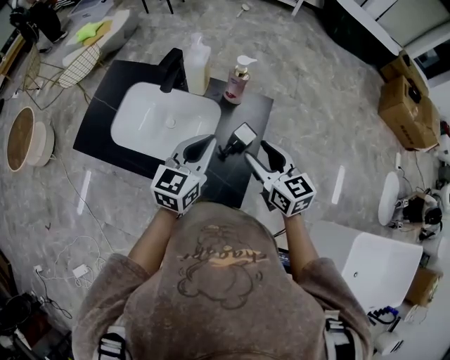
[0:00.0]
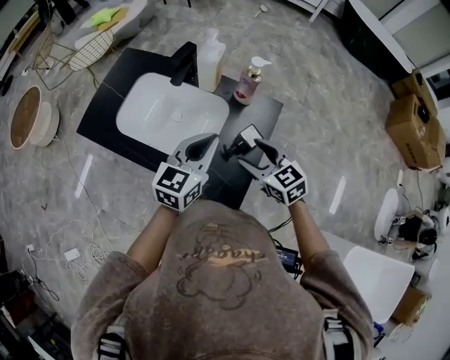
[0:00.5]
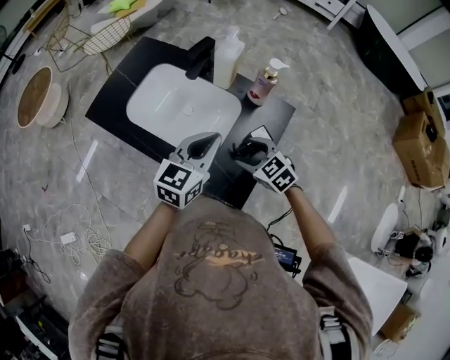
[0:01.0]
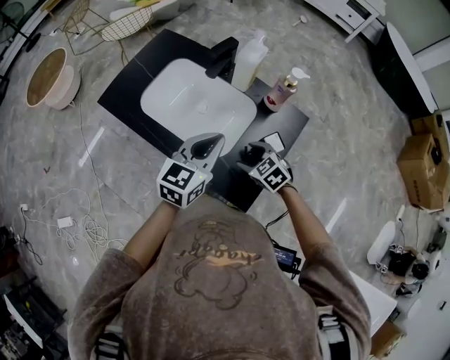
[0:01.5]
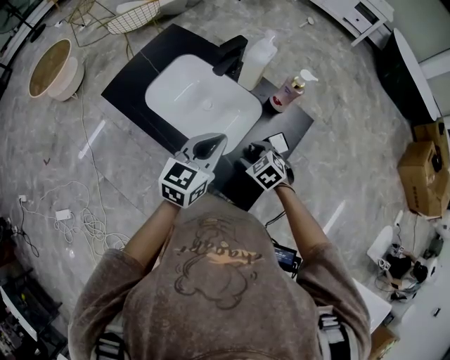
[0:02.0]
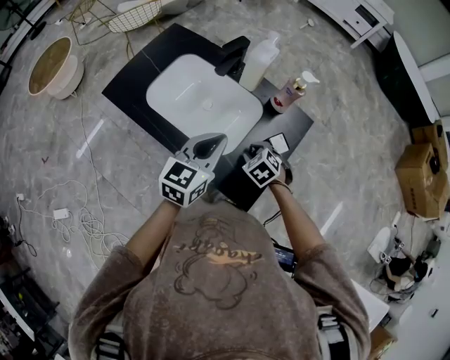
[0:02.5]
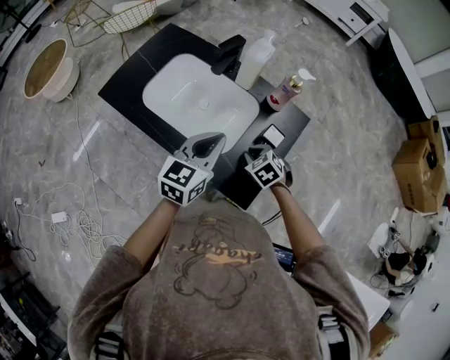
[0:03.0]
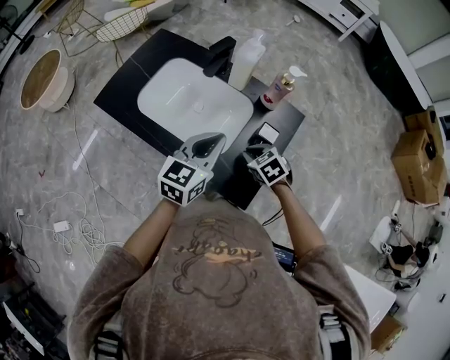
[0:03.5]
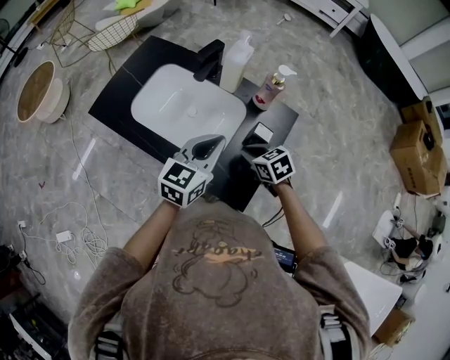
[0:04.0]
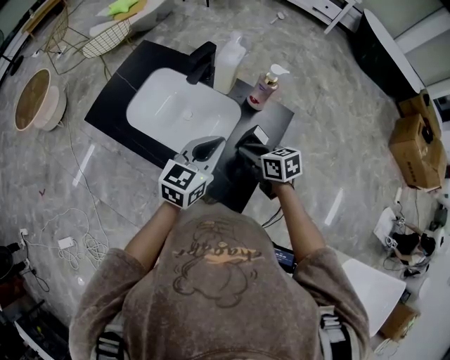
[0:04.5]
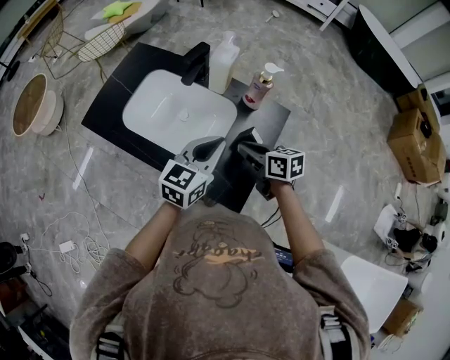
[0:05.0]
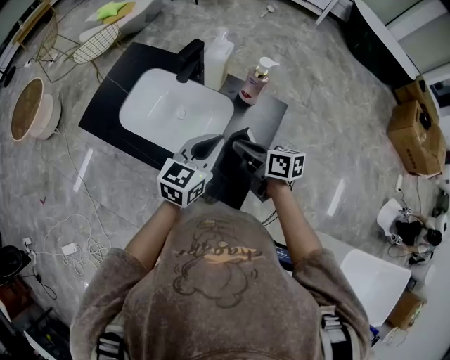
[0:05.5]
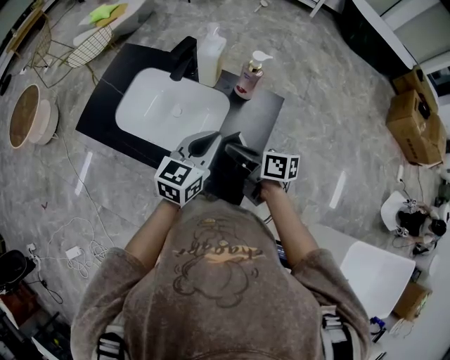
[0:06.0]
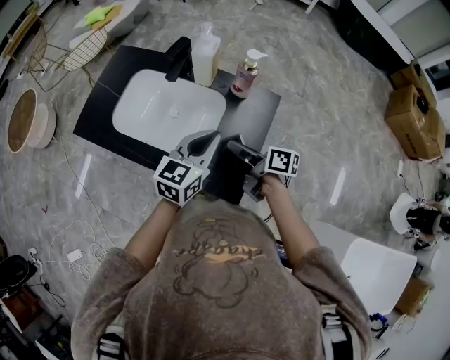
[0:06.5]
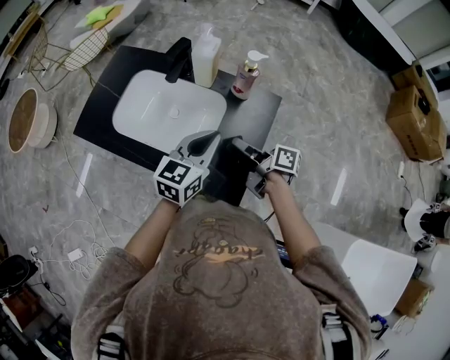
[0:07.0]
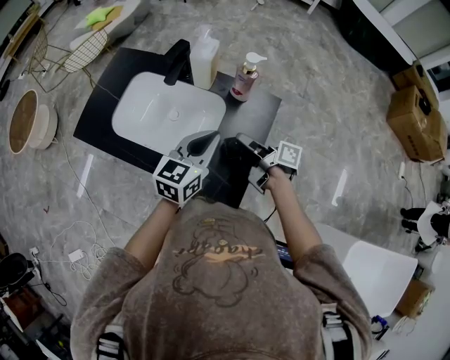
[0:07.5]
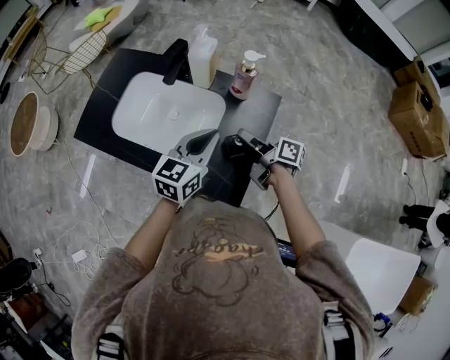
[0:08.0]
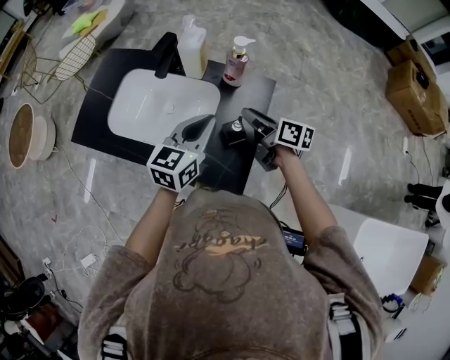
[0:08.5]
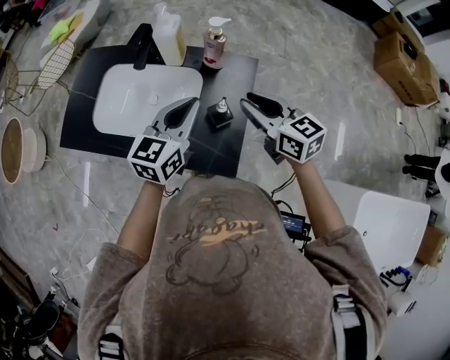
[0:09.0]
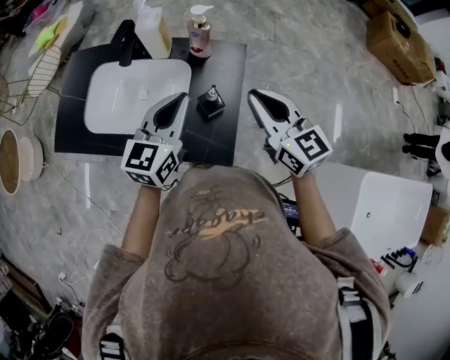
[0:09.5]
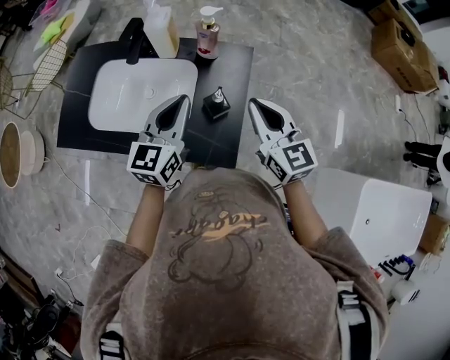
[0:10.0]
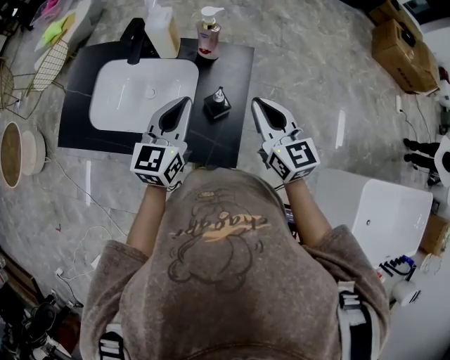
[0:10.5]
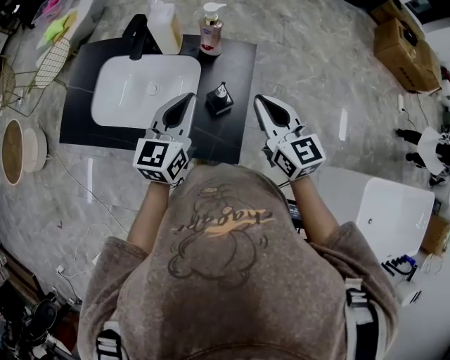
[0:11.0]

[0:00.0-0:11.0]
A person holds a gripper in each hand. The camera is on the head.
0:00.0 to 0:02.0: The left gripper is displaced to the left by approximately 5 cm, while the right gripper shifts about 20 cm downward and to the left, and tilts its fingers approximately 40 degrees downward.
0:02.0 to 0:03.5: The right gripper closes.
0:03.5 to 0:05.5: The left gripper shifts approximately 5 cm to the right. The right gripper travels upward by approximately 10 cm, and points its fingers about 40 degrees further upward.
0:05.5 to 0:07.5: The right gripper shifts by some 5 cm, and swivels approximately 40 degrees.
0:07.5 to 0:09.0: The right gripper travels upward by about 10 cm, and rolls counterclockwise, seen from behind, by roughly 60 degrees.
0:09.0 to 0:11.0: The right gripper ends up approximately 5 cm from where it was.

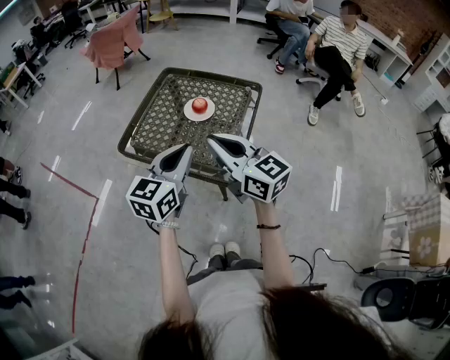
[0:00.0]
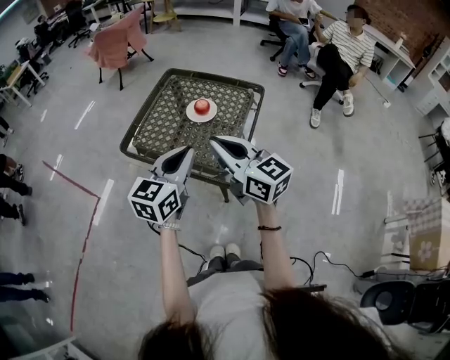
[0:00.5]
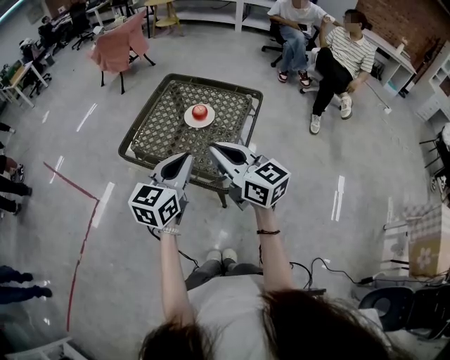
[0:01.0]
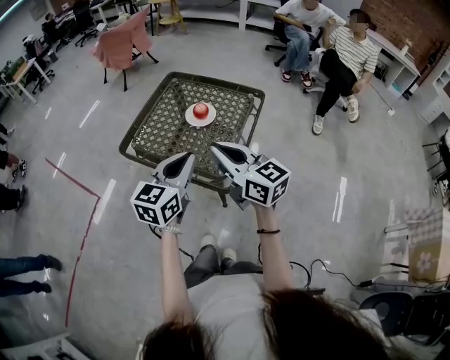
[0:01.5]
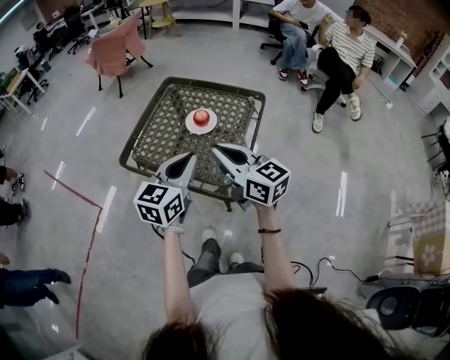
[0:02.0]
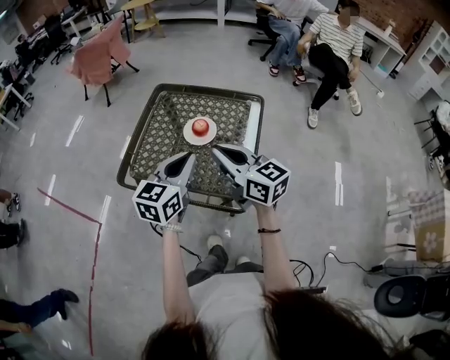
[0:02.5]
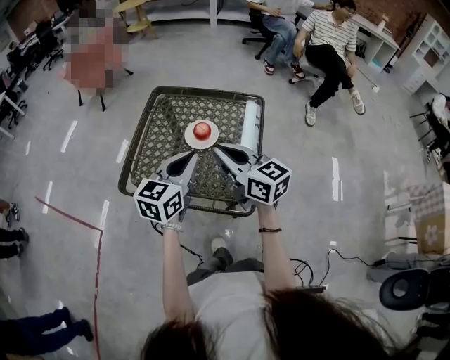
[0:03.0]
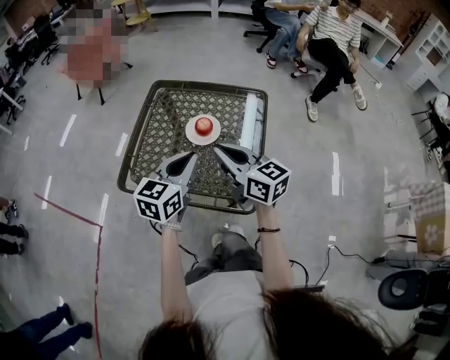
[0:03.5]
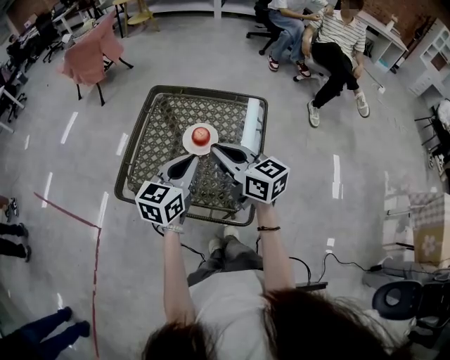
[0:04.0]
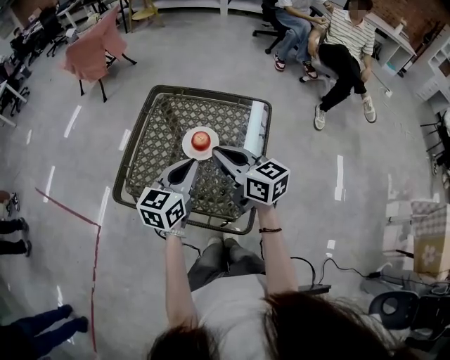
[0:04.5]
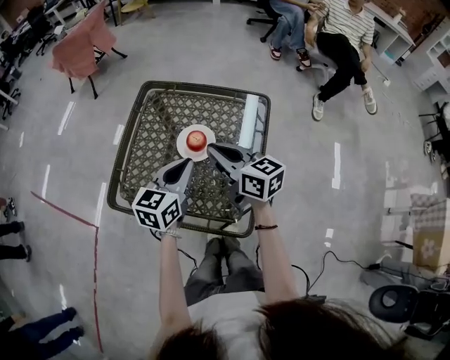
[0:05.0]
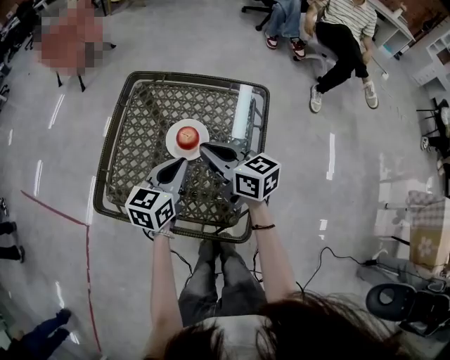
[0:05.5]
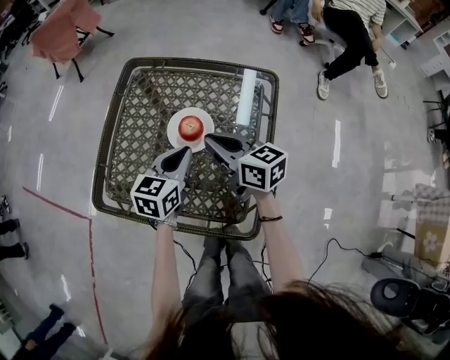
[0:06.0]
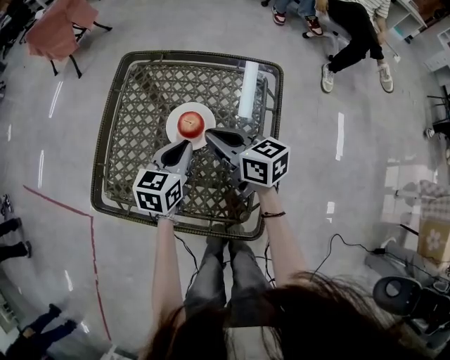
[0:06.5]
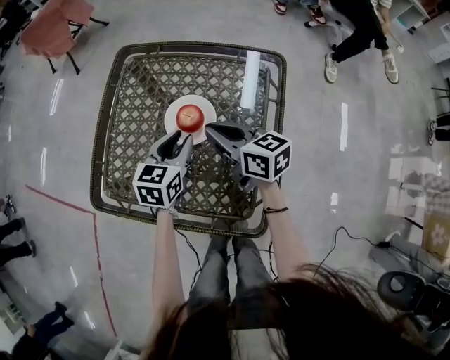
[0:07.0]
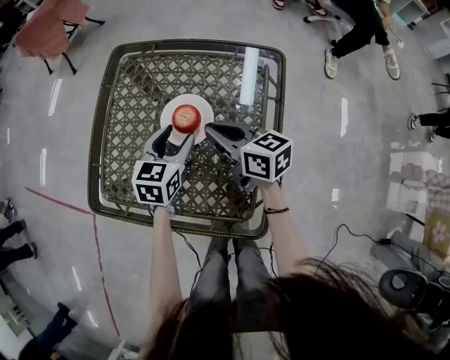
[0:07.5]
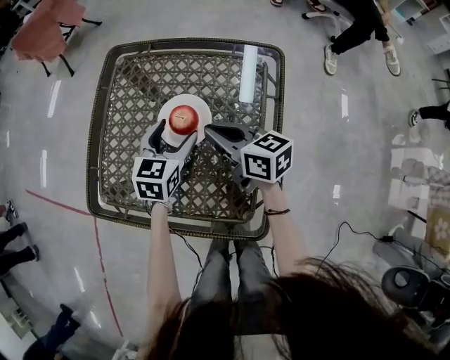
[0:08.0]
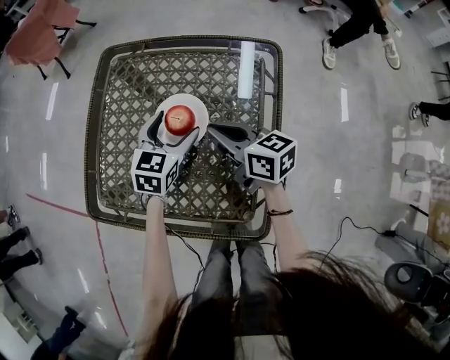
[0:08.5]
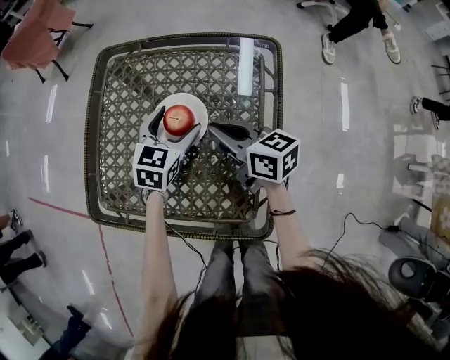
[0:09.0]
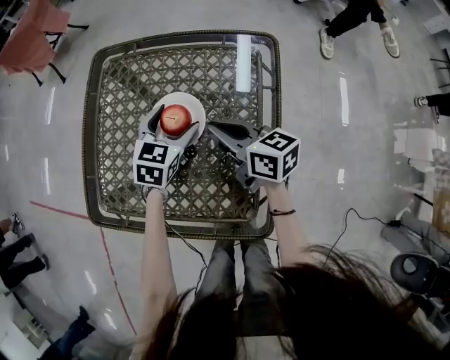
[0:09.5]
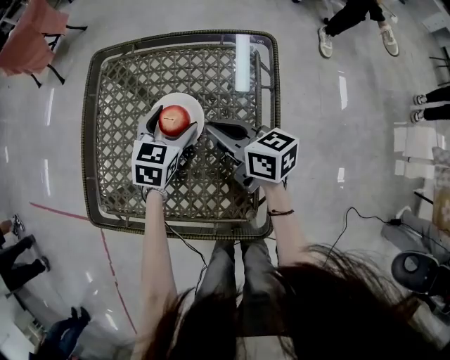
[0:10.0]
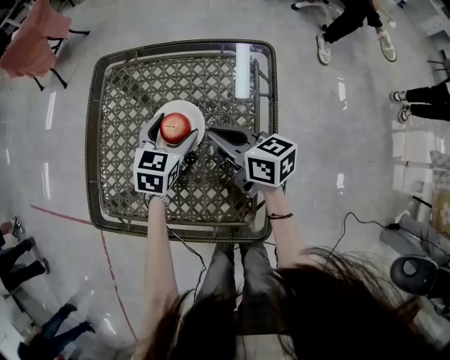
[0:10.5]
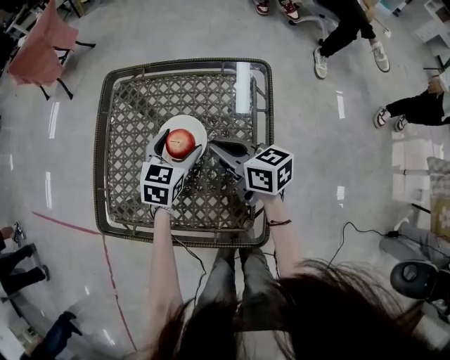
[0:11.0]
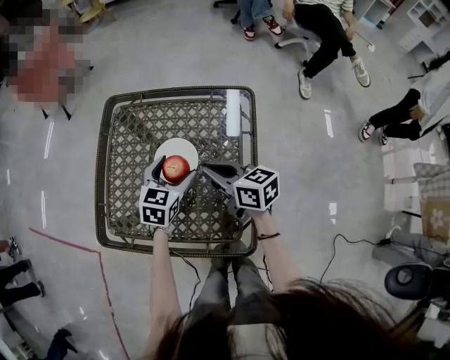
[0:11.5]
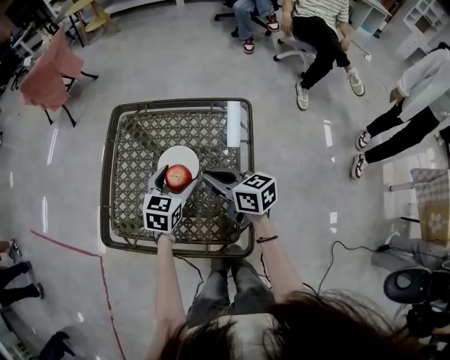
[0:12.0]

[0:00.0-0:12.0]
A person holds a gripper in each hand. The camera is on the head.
0:00.0 to 0:02.0: The right gripper changes place by about 5 cm; the left gripper ends up about 5 cm from where it was.
0:02.0 to 0:04.0: The grippers both shift forward by about 15 cm.
0:04.0 to 0:06.0: Both grippers move downward and forward, roughly 20 cm.
0:06.0 to 0:08.0: The right gripper goes some 5 cm downward, while the left gripper goes about 10 cm downward and forward, and opens.
0:08.0 to 0:10.0: The grippers move only a little.
0:10.0 to 0:12.0: The left gripper travels upward and backward by some 10 cm; the right gripper goes approximately 10 cm upward.

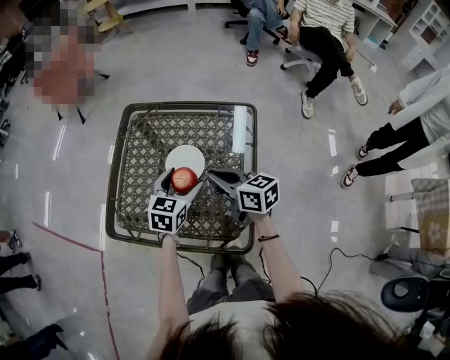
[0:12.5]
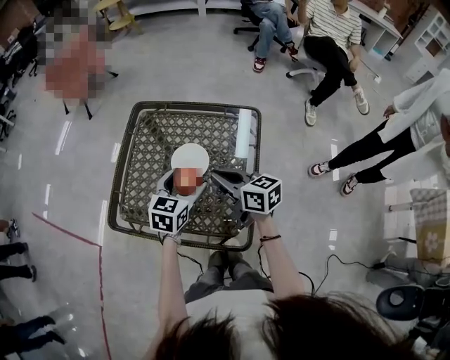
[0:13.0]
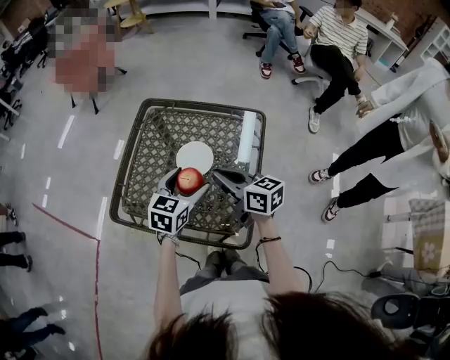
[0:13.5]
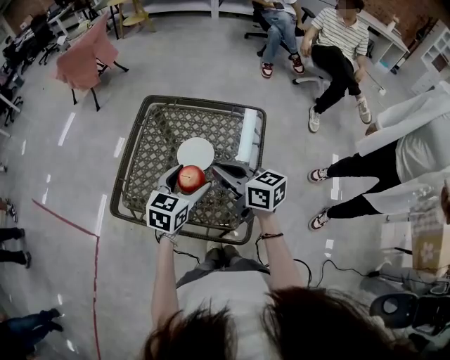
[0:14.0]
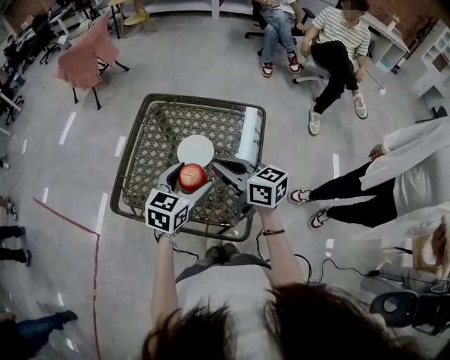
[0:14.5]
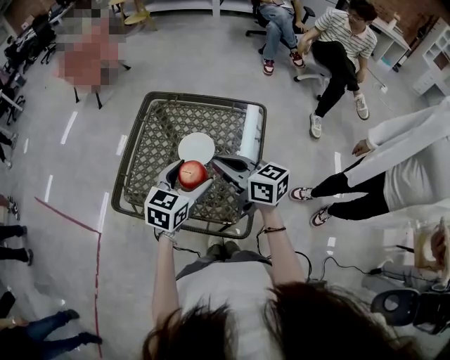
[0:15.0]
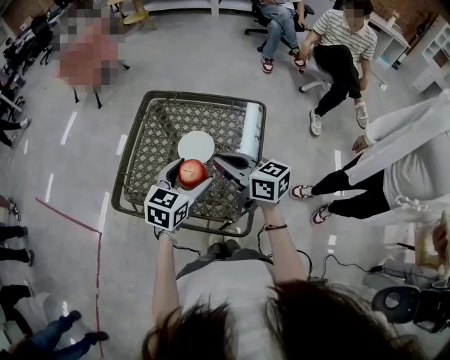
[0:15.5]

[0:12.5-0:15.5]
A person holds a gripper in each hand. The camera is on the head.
0:12.5 to 0:14.0: The right gripper goes some 5 cm upward; the left gripper goes about 10 cm upward and backward.
0:14.0 to 0:15.5: There are only small adjustments of the grippers.

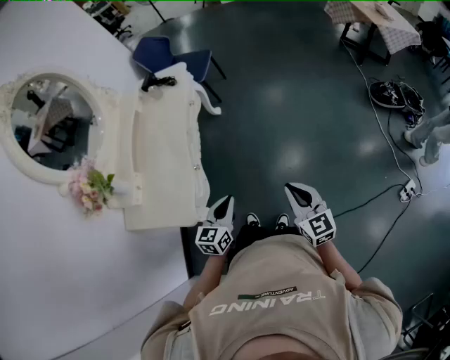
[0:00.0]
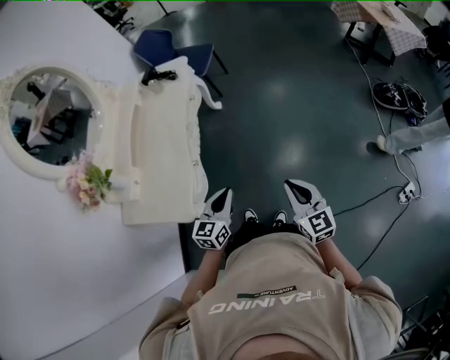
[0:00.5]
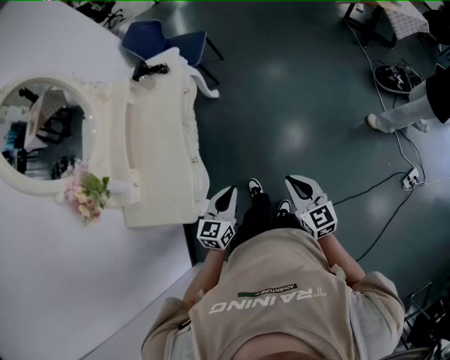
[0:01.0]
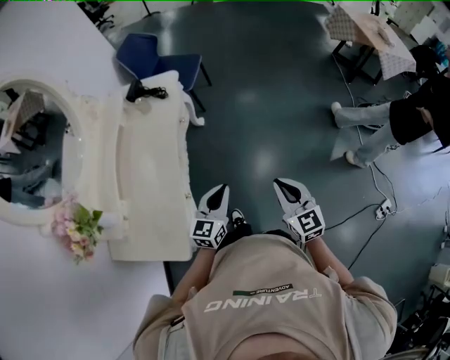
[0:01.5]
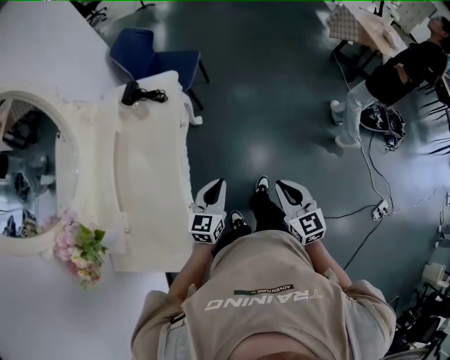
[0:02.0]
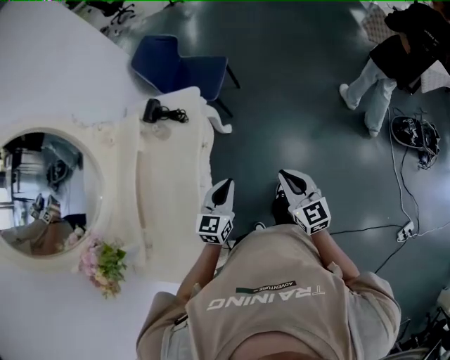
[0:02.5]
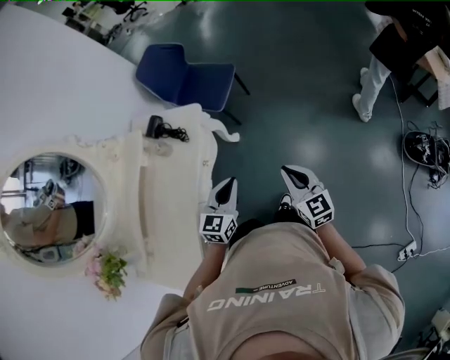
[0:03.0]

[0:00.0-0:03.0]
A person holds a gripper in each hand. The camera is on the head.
0:00.0 to 0:01.5: The two grippers go some 20 cm forward.
0:01.5 to 0:03.0: The grippers both shift forward by about 30 cm.
